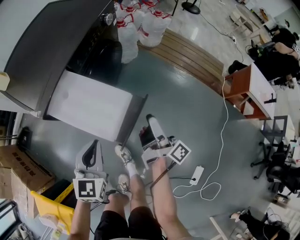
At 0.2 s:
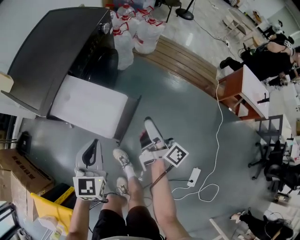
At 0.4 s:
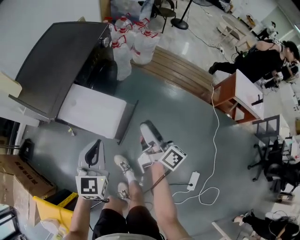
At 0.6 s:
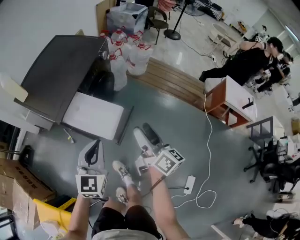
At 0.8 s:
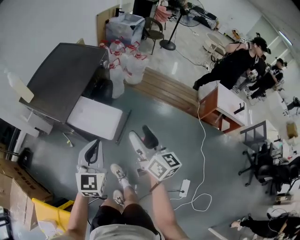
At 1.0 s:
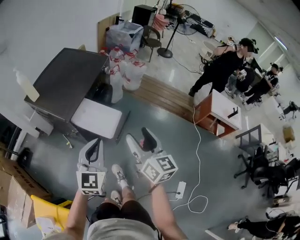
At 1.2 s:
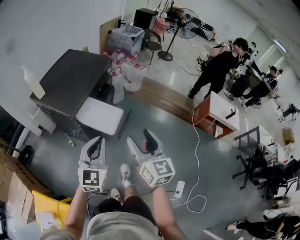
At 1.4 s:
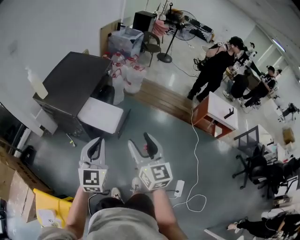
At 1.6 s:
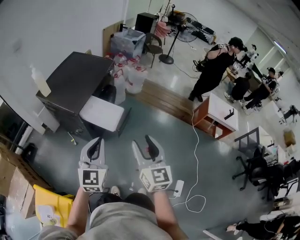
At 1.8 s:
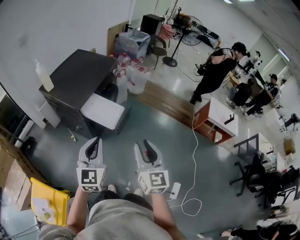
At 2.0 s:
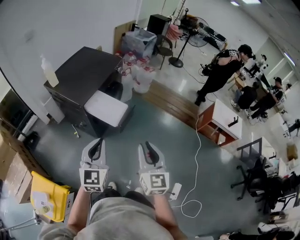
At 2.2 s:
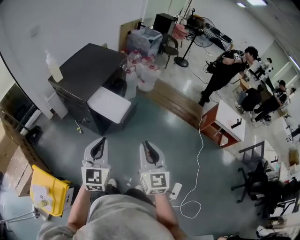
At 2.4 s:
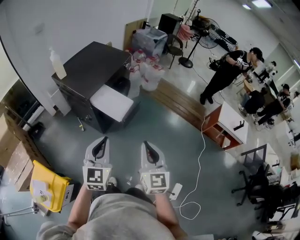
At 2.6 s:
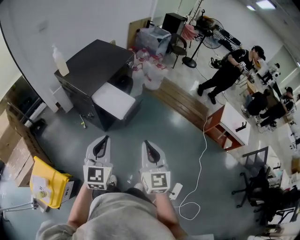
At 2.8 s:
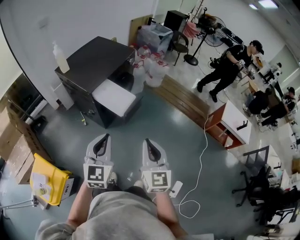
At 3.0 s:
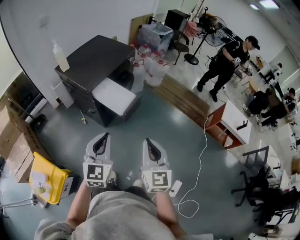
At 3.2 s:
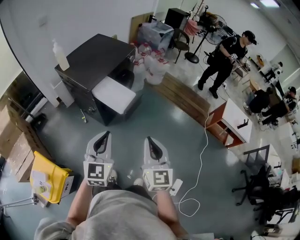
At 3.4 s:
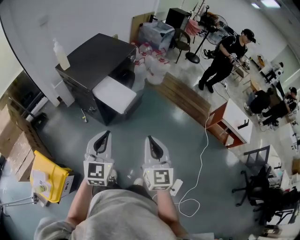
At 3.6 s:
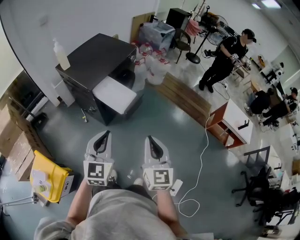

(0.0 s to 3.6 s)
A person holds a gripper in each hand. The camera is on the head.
0.0 s - 1.8 s: The grippers both shift upward and backward by some 40 cm. The right gripper twists approximately 80 degrees counterclockwise, seen from behind, and closes its fingers.
1.8 s - 3.6 s: The left gripper moves some 5 cm. The right gripper closes its fingers.

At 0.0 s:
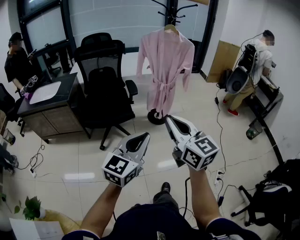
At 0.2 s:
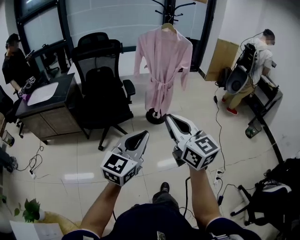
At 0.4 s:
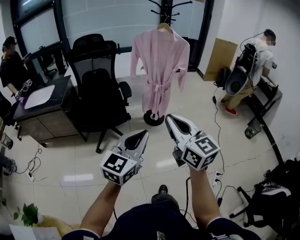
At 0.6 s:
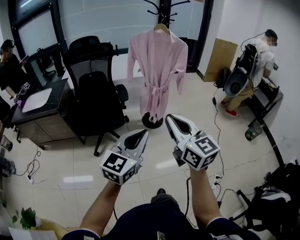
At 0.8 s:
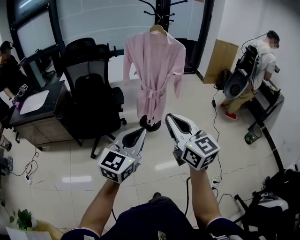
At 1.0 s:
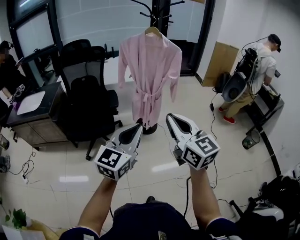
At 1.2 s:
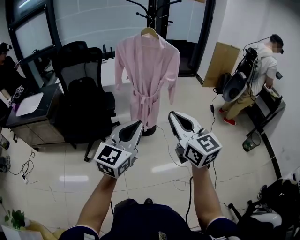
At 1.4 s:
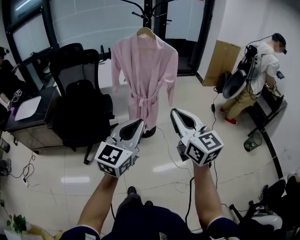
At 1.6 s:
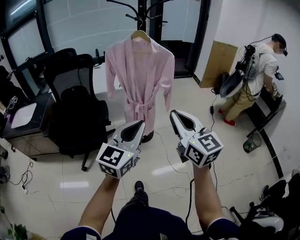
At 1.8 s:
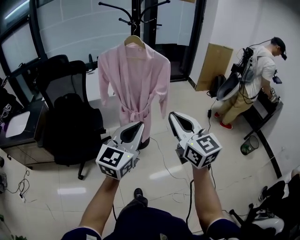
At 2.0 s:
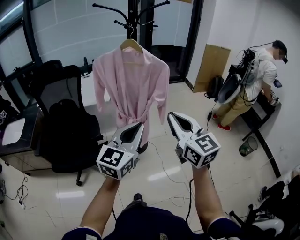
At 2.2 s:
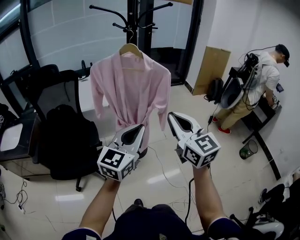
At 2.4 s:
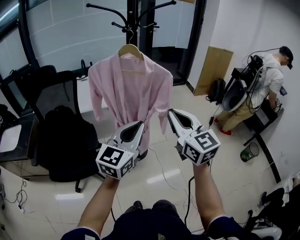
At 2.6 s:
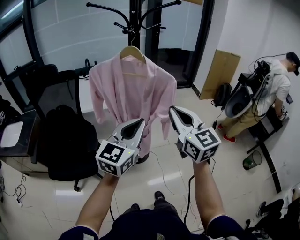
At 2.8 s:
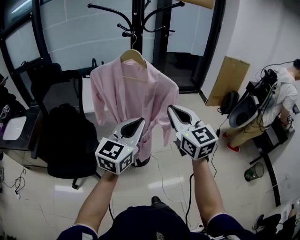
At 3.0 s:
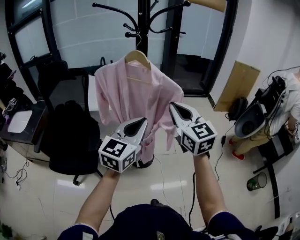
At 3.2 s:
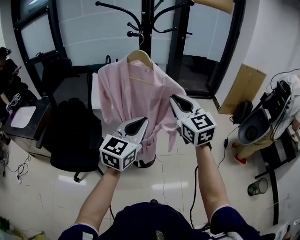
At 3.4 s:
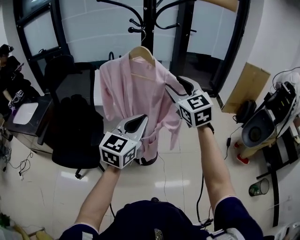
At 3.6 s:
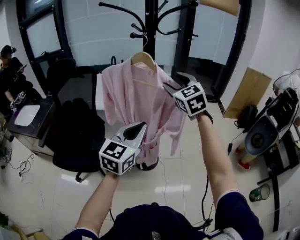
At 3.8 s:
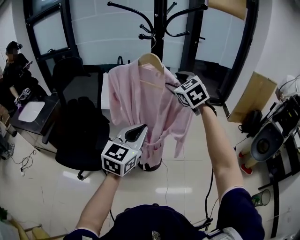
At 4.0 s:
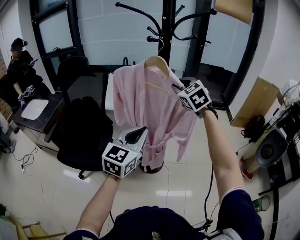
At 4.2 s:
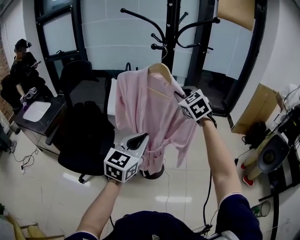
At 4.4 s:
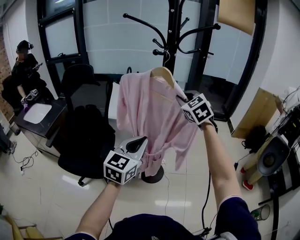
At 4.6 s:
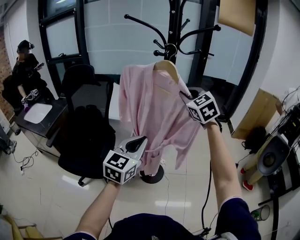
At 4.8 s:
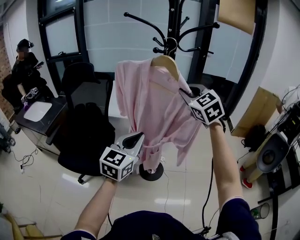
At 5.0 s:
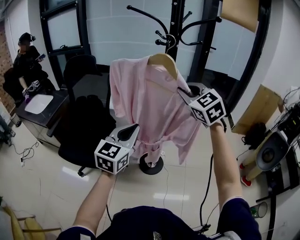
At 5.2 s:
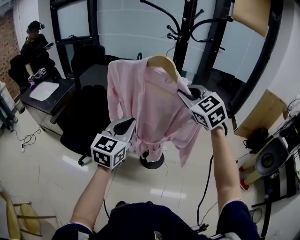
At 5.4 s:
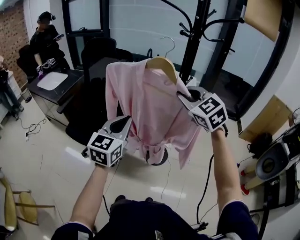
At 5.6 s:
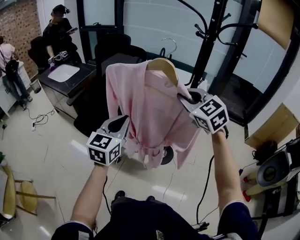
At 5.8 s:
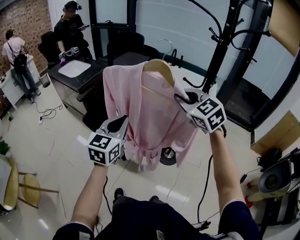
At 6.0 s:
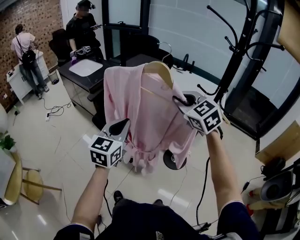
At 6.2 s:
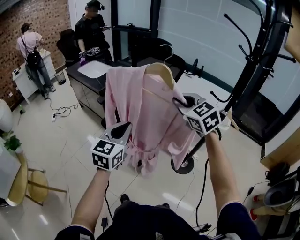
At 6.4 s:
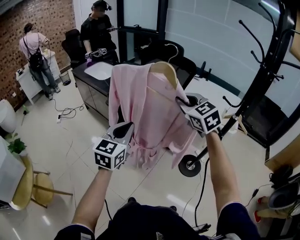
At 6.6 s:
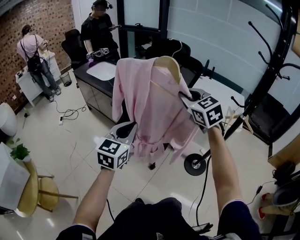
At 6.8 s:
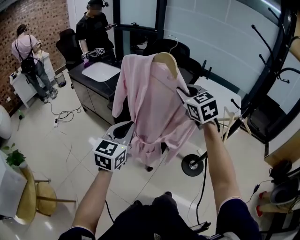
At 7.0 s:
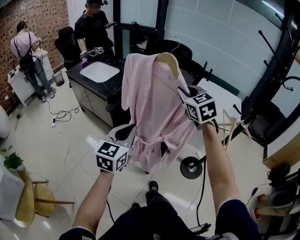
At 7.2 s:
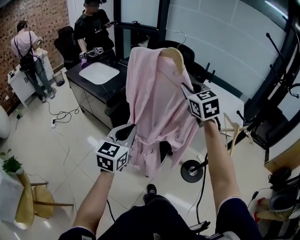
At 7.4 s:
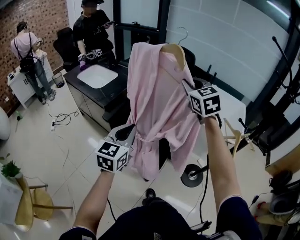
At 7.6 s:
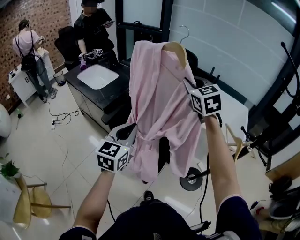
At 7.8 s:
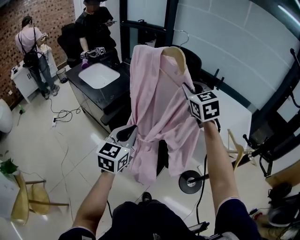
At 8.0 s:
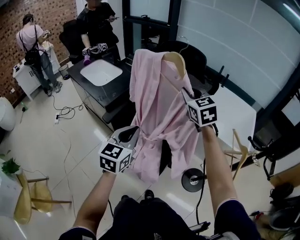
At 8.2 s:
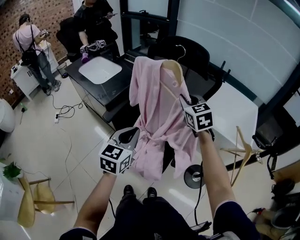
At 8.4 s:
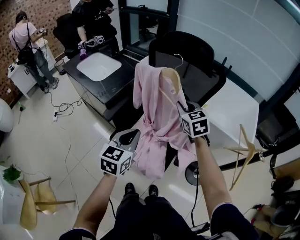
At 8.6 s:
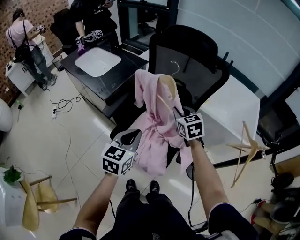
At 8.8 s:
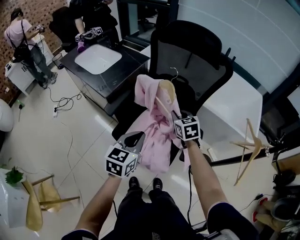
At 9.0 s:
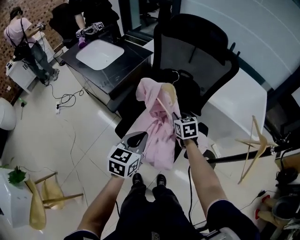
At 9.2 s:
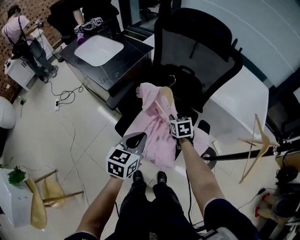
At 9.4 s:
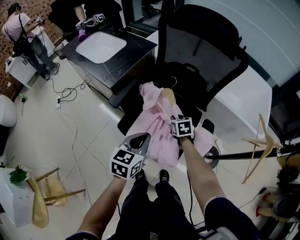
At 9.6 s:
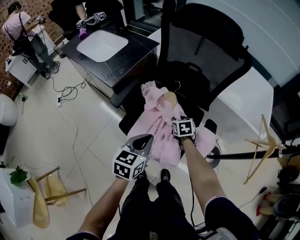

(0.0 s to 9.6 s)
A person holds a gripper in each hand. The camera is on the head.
0.0 s - 1.6 s: Both grippers move forward and to the right, roughly 35 cm.
1.6 s - 3.2 s: Both grippers travel together forward, about 35 cm.
3.2 s - 4.8 s: The left gripper shifts approximately 5 cm to the left. The right gripper travels forward and upward by approximately 10 cm, swivels about 30 degrees, and opens and closes again.
4.8 s - 6.4 s: The right gripper moves approximately 40 cm, and changes its angle by approximately 30 degrees, while the left gripper shifts by roughly 40 cm, and turns by approximately 30 degrees.
6.4 s - 8.0 s: The two grippers go some 25 cm forward.
8.0 s - 9.6 s: The left gripper goes about 15 cm downward, and swivels about 20 degrees. Meanwhile the right gripper moves downward, some 40 cm, and tips its fingers downward by about 30 degrees.

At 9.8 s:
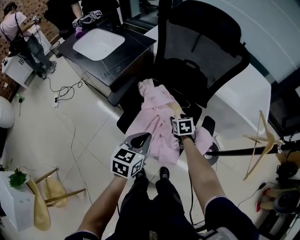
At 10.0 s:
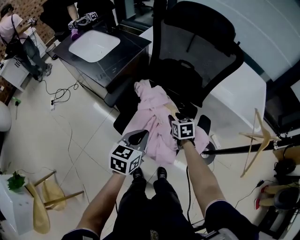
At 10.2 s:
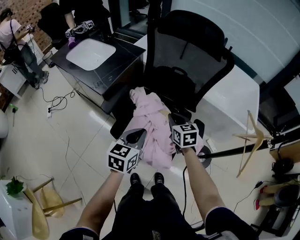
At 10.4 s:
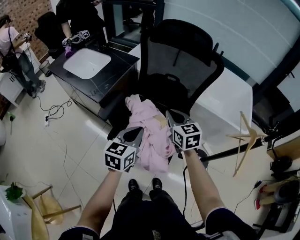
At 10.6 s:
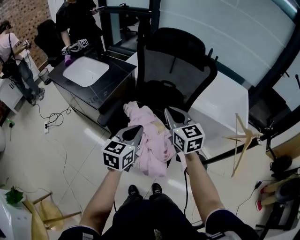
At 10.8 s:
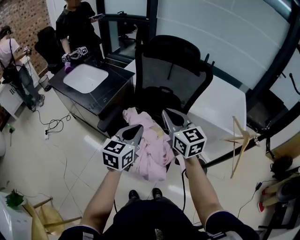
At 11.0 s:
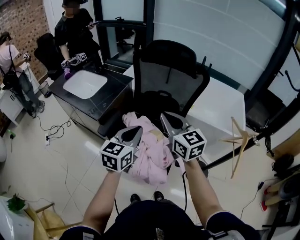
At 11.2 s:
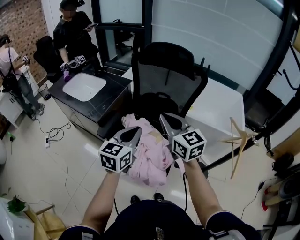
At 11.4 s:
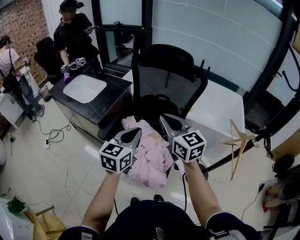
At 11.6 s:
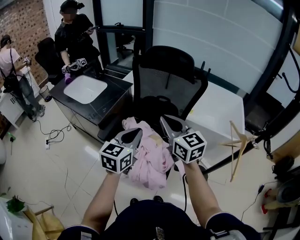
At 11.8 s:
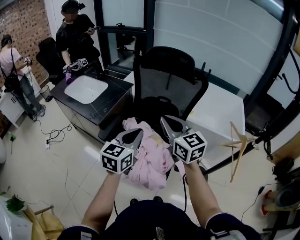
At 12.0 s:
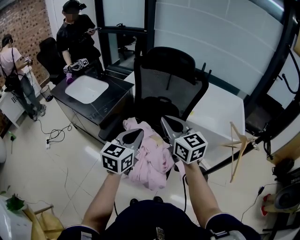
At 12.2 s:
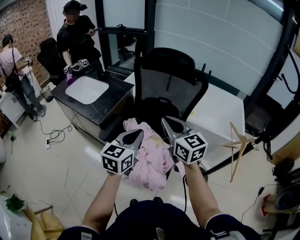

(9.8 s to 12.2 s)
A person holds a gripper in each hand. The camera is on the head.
9.8 s - 11.0 s: The left gripper travels upward by roughly 15 cm, while the right gripper travels upward by about 35 cm, points its fingers roughly 50 degrees further upward, and closes up.
11.0 s - 12.2 s: The grippers move only a little.

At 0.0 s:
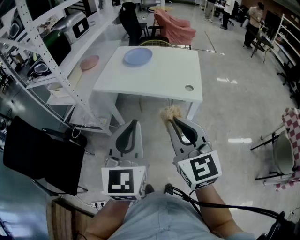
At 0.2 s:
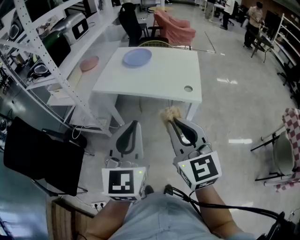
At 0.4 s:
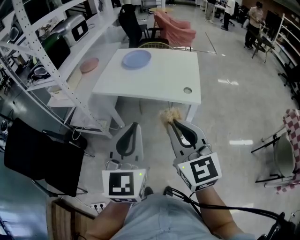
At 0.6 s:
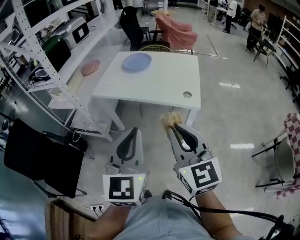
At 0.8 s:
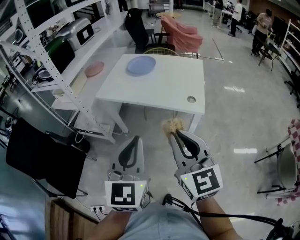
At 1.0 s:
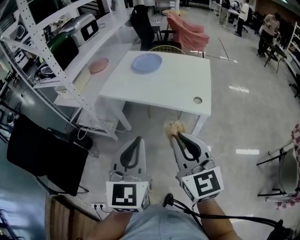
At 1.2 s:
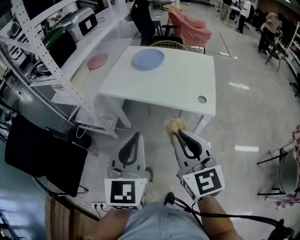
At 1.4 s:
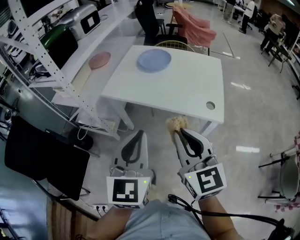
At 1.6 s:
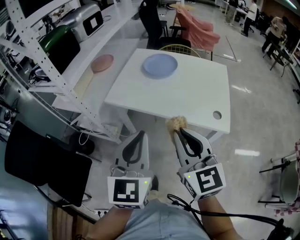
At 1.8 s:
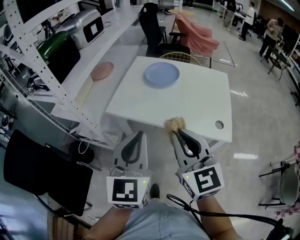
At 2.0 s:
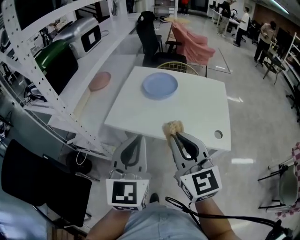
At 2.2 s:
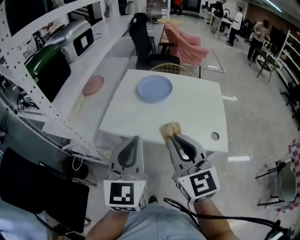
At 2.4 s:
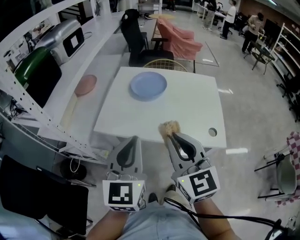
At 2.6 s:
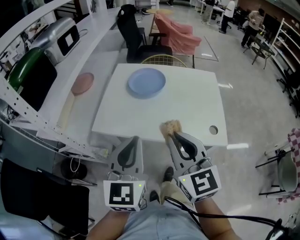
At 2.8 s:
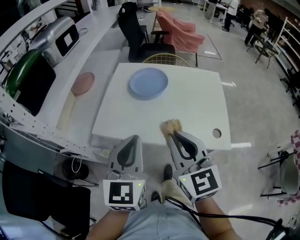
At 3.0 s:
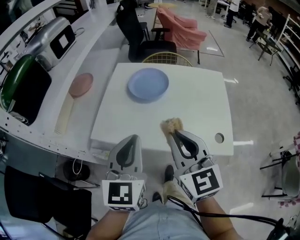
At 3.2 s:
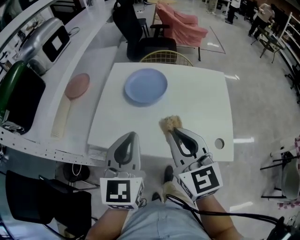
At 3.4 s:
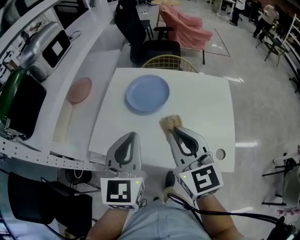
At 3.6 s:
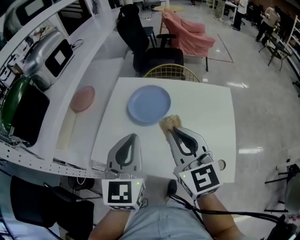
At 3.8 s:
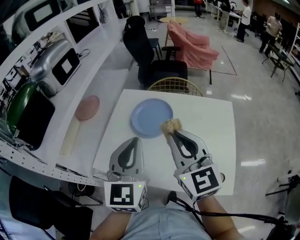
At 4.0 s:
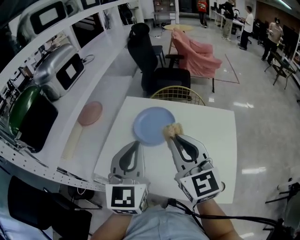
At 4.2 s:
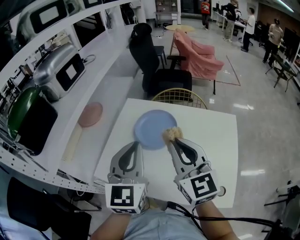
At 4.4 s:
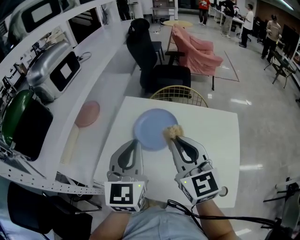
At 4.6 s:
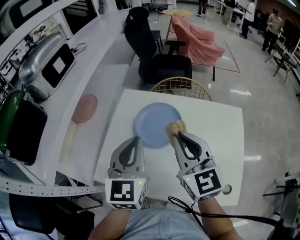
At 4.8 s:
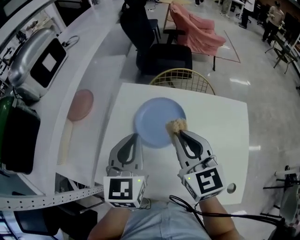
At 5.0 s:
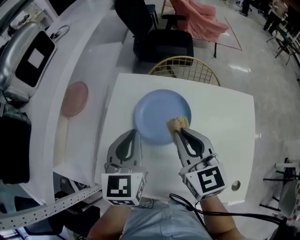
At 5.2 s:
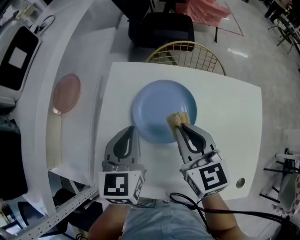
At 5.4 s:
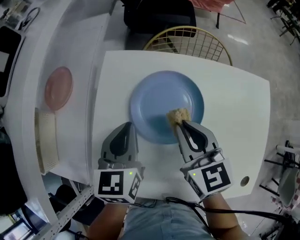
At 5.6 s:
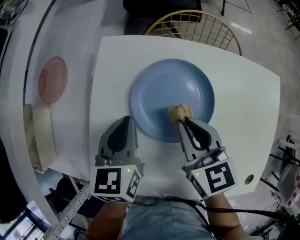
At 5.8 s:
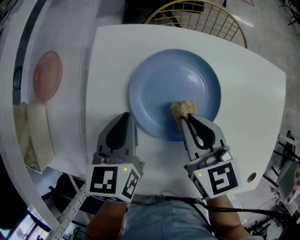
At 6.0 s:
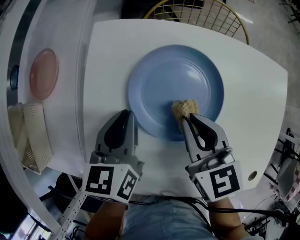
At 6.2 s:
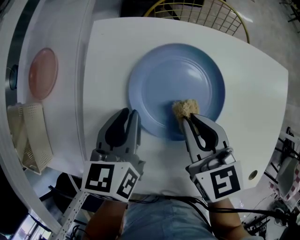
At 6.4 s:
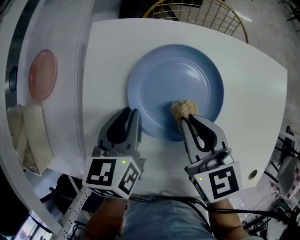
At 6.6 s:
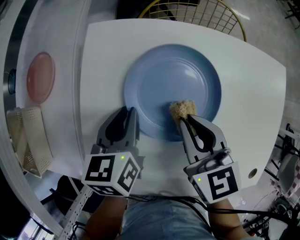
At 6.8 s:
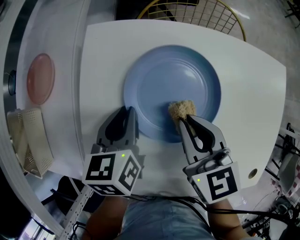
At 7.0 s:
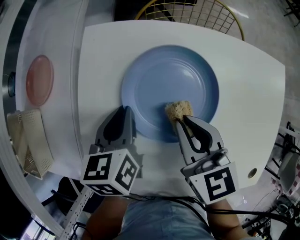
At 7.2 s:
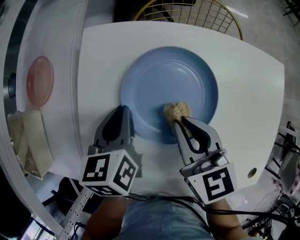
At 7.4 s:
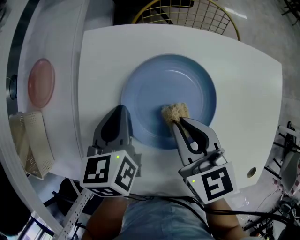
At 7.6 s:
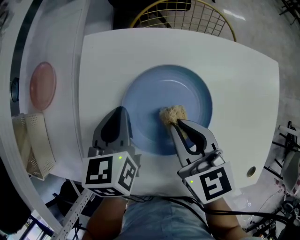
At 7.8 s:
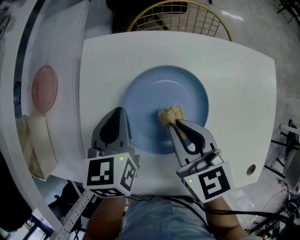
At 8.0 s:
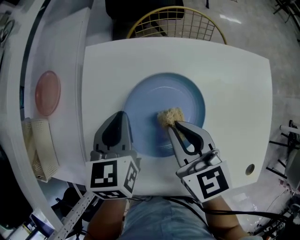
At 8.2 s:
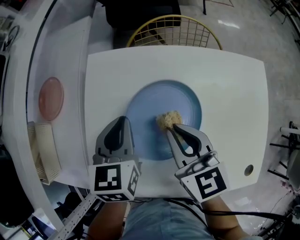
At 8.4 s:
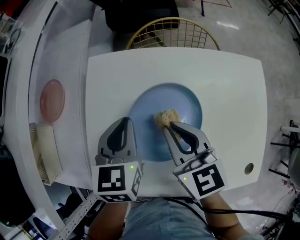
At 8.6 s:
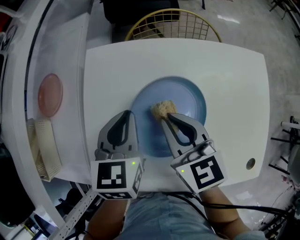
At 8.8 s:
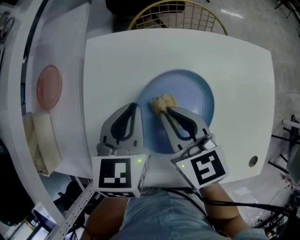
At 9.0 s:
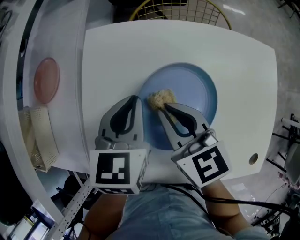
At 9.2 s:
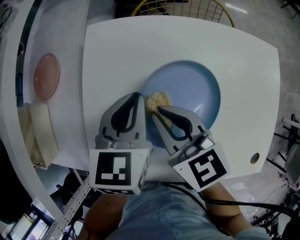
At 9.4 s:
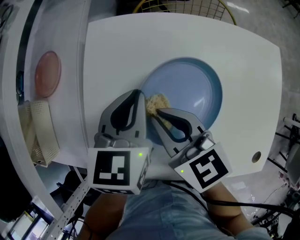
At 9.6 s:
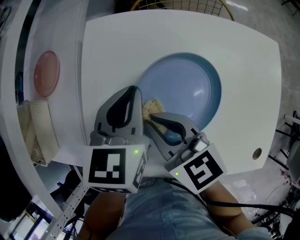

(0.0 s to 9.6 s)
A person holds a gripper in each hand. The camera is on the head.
0.0 s - 1.6 s: The two grippers go approximately 20 cm forward.
1.6 s - 3.2 s: The two grippers go roughly 25 cm forward.
3.2 s - 4.8 s: Both grippers move forward, approximately 25 cm.
4.8 s - 6.4 s: Both grippers move downward and forward, about 25 cm. The left gripper swivels some 30 degrees, while the right gripper turns by about 20 degrees.
6.4 s - 8.0 s: The left gripper heads upward, covering roughly 5 cm; the right gripper moves some 5 cm.
8.0 s - 9.6 s: The right gripper goes roughly 10 cm to the left.
